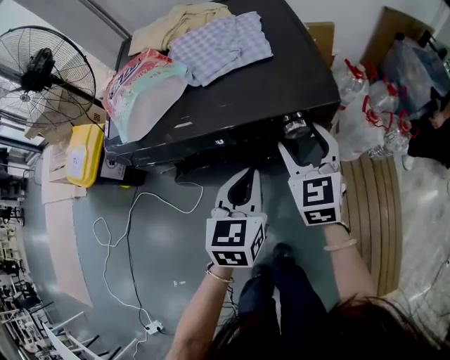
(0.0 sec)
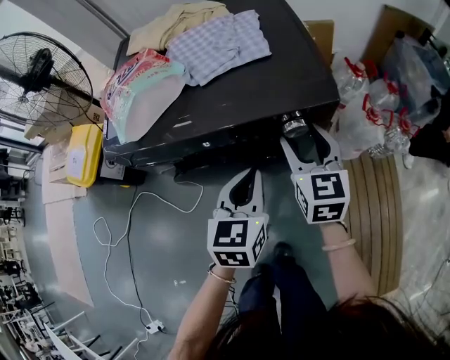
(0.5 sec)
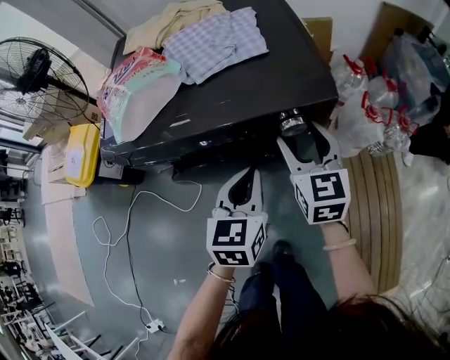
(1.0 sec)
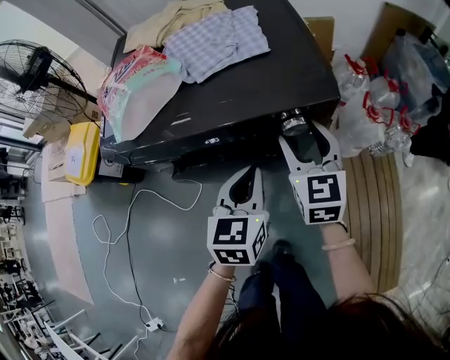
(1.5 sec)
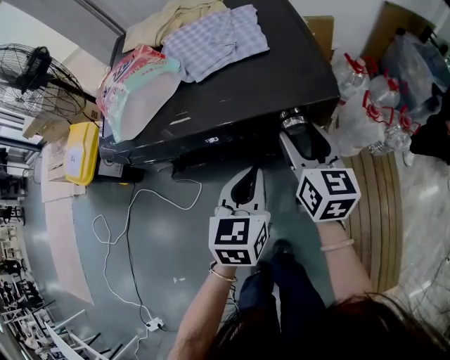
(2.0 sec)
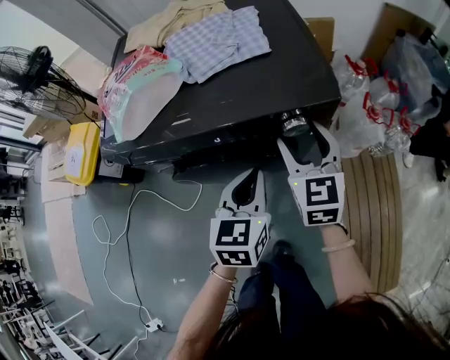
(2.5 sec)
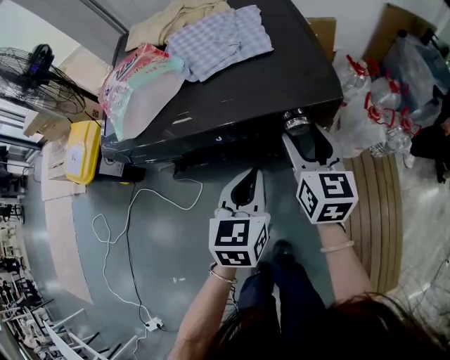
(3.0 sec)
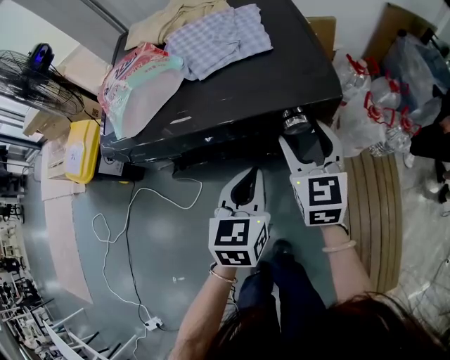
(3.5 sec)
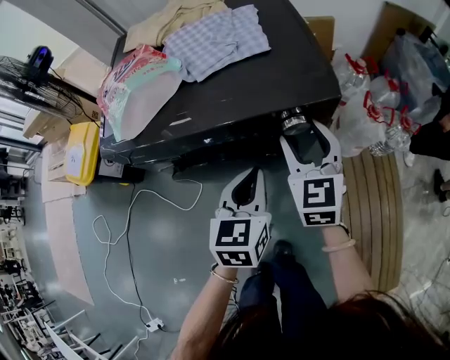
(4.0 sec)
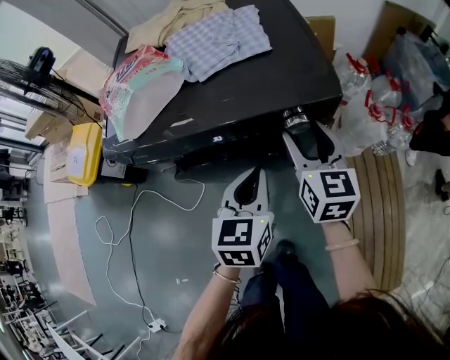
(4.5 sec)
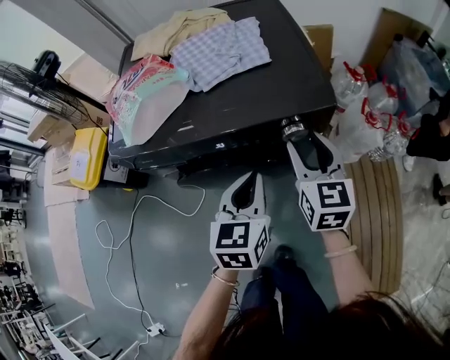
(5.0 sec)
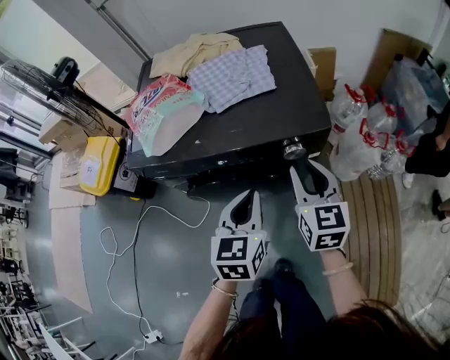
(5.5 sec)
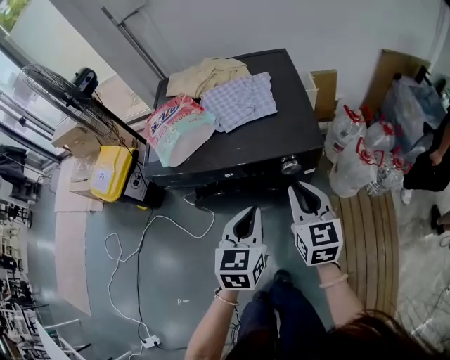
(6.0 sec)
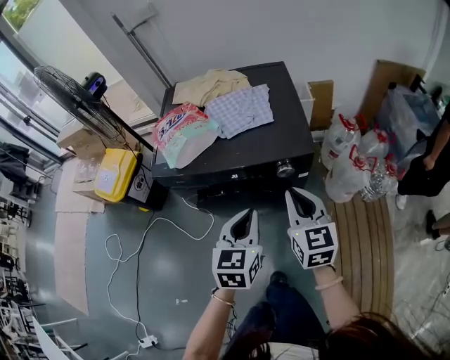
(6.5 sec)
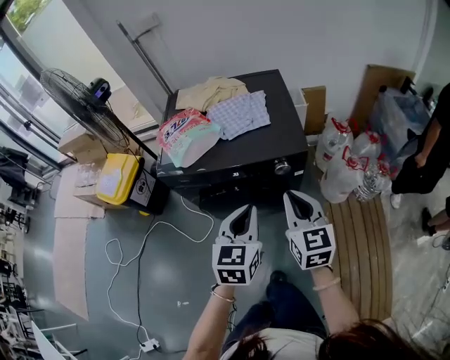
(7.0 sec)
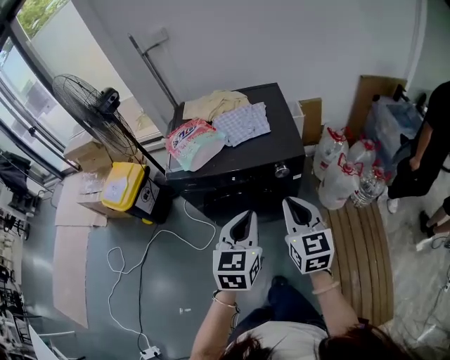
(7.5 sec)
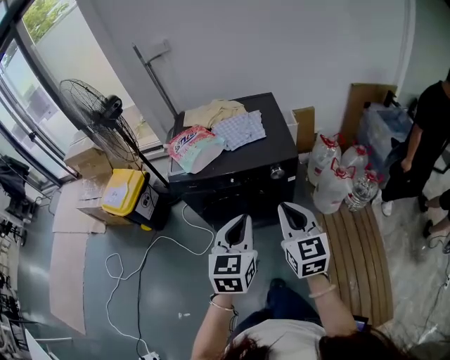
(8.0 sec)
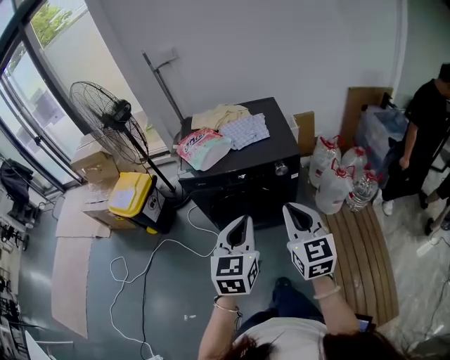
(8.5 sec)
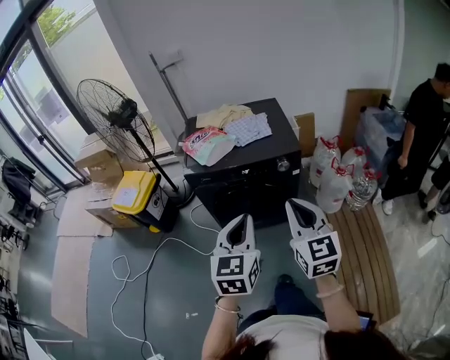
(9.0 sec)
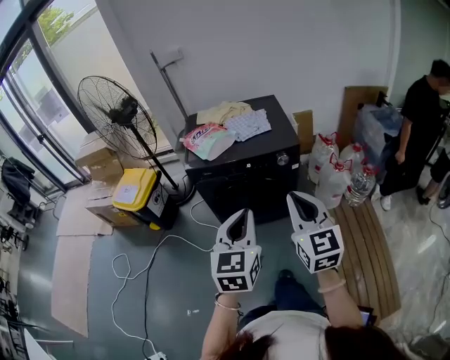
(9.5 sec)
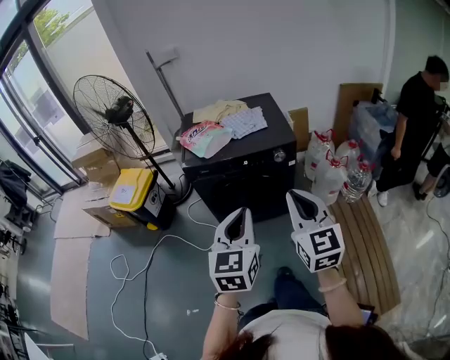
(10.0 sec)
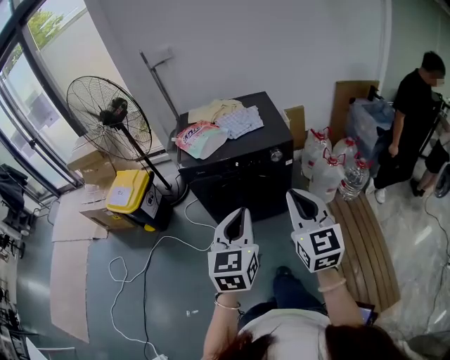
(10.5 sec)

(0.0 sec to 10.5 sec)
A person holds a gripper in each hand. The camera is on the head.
0.0 sec - 2.0 sec: The right gripper rotates about 30 degrees.
2.0 sec - 4.0 sec: The right gripper turns by roughly 30 degrees.
4.0 sec - 6.5 sec: The two grippers go approximately 15 cm upward and backward. The right gripper closes its fingers.
6.5 sec - 8.5 sec: Both grippers move backward and upward, roughly 25 cm.
8.5 sec - 10.5 sec: Both grippers move backward, about 10 cm.

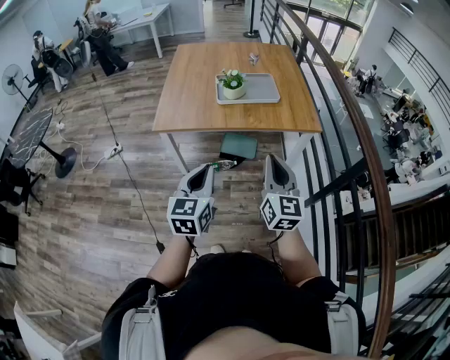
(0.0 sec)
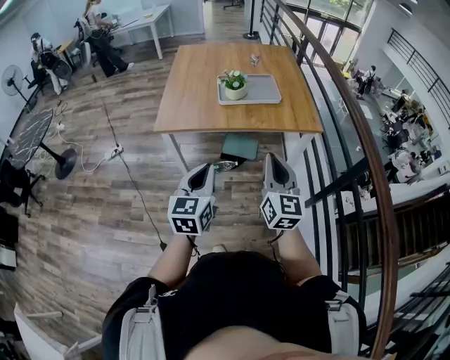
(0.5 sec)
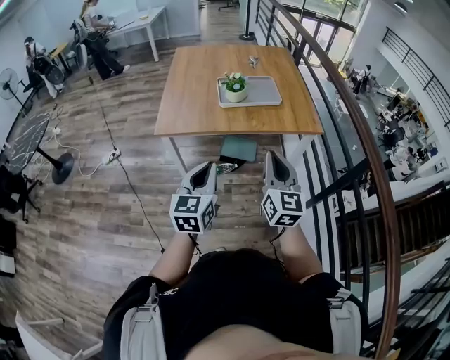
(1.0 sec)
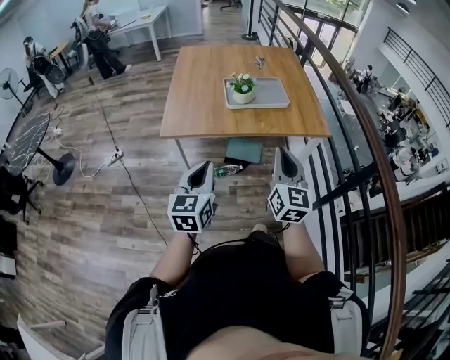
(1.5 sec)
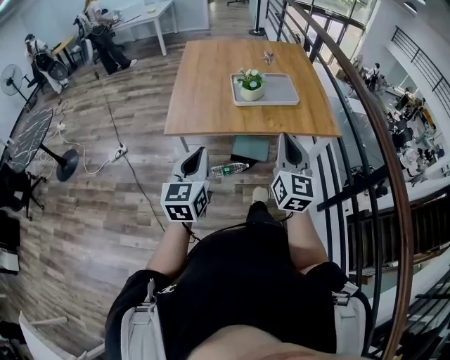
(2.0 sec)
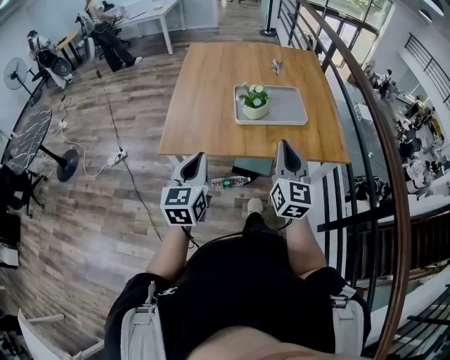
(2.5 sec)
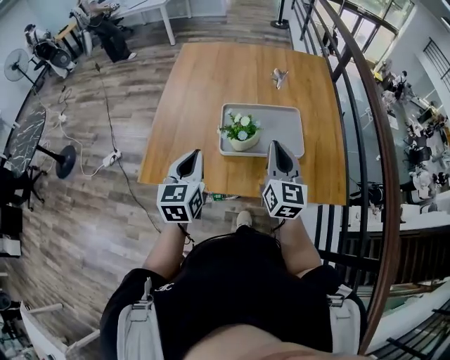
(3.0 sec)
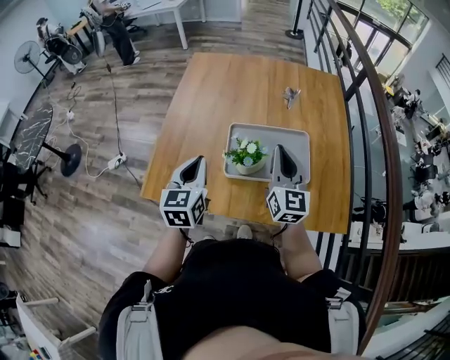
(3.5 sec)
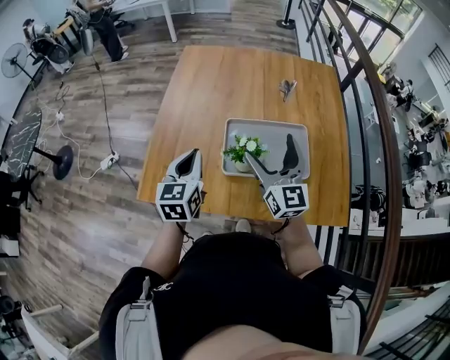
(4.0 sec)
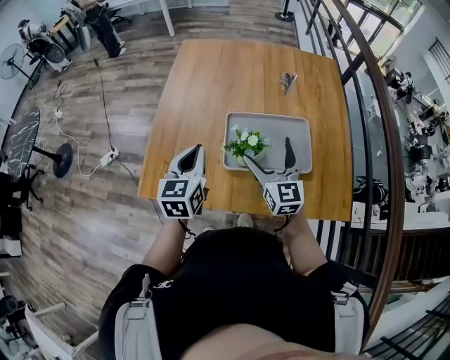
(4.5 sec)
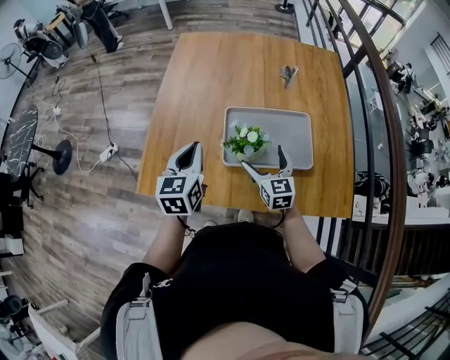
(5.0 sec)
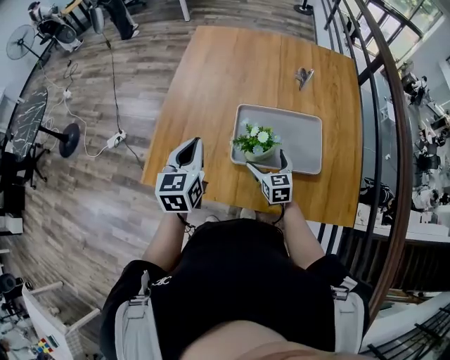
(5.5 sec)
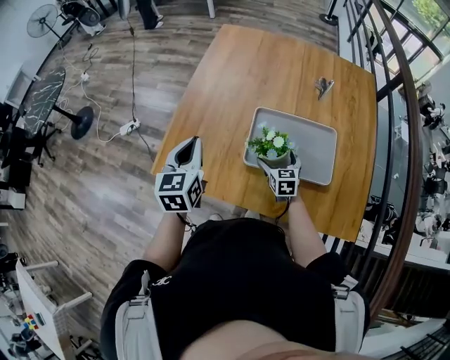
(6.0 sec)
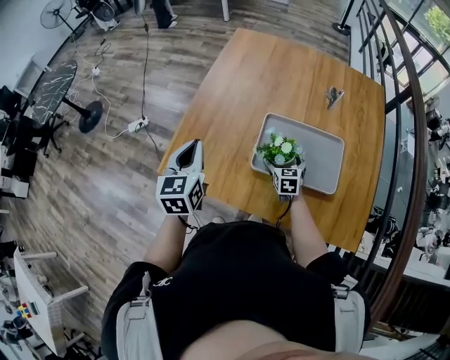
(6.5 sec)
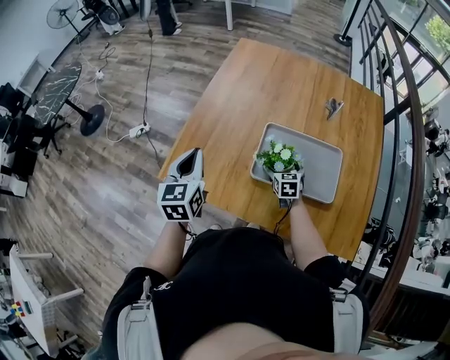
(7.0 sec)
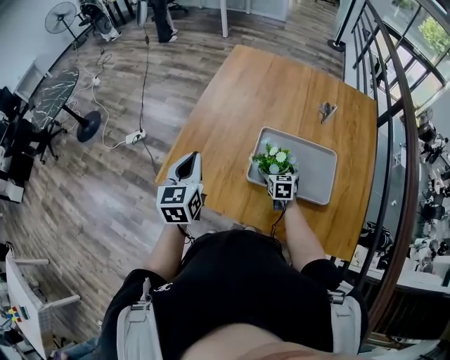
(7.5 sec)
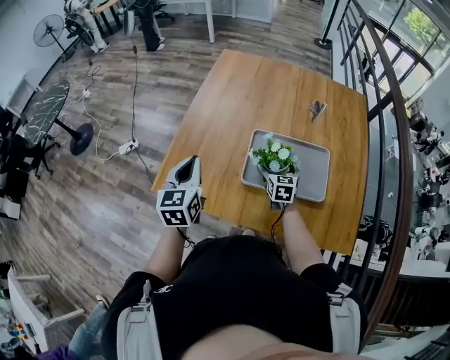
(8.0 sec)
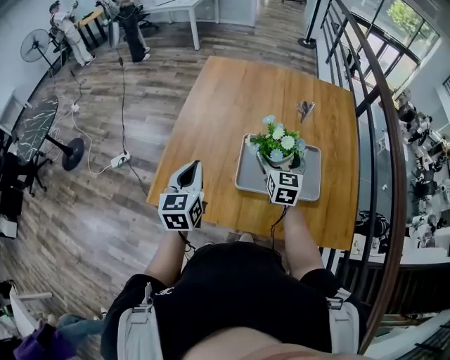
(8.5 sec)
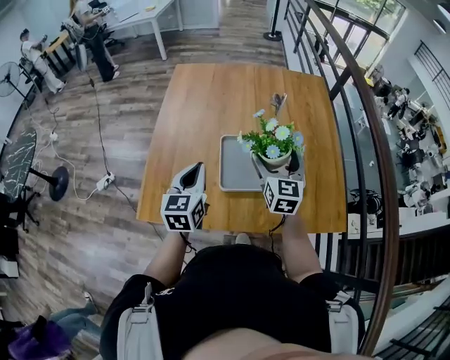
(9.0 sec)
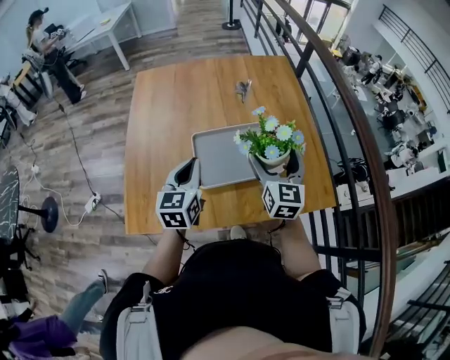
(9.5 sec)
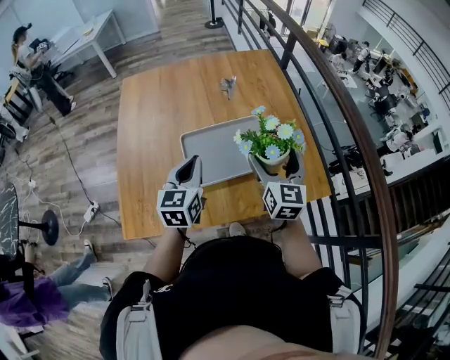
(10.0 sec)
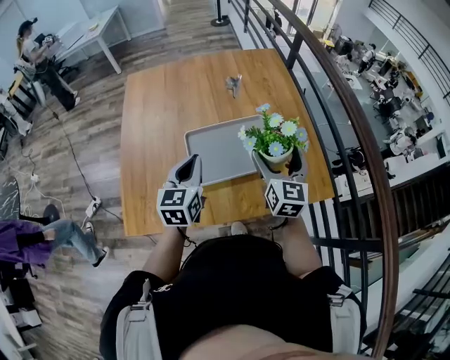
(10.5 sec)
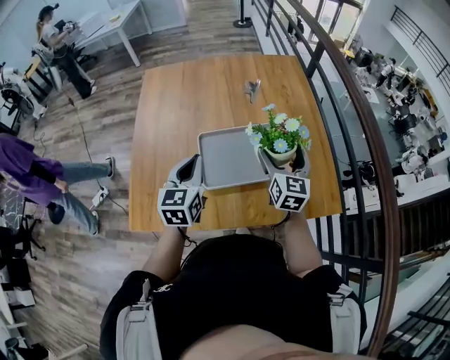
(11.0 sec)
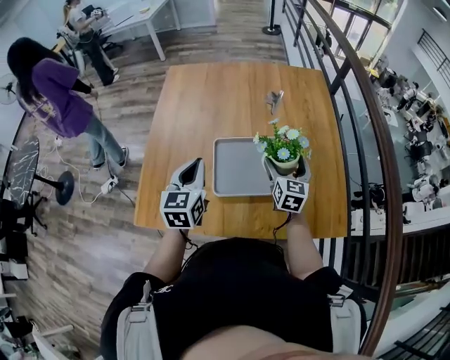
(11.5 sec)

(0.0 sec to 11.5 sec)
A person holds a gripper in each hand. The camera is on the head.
0.0 sec - 2.0 sec: The left gripper moves to the left and forward, approximately 15 cm. Meanwhile the right gripper is displaced forward and to the left by approximately 15 cm.
2.0 sec - 4.0 sec: Both grippers are carried forward, some 50 cm. The right gripper changes its angle by about 20 degrees, and opens up.
4.0 sec - 6.0 sec: The left gripper is displaced to the left by roughly 5 cm. Meanwhile the right gripper is displaced downward by some 30 cm, and tips its fingers downward by roughly 40 degrees.
6.0 sec - 7.5 sec: The grippers stay close to where they were, moving slightly.
7.5 sec - 9.5 sec: The left gripper moves about 20 cm, and changes its angle by roughly 30 degrees. The right gripper is displaced upward by roughly 25 cm, and tips its fingers upward by some 30 degrees.
9.5 sec - 11.5 sec: The right gripper goes some 15 cm downward and forward. The left gripper moves roughly 5 cm to the right and comes back.

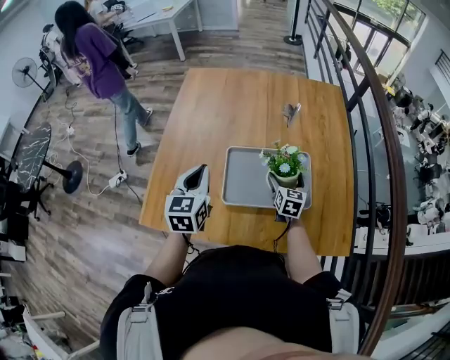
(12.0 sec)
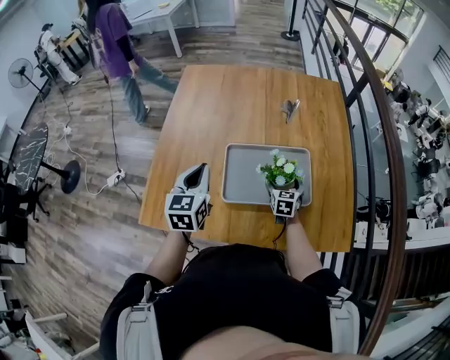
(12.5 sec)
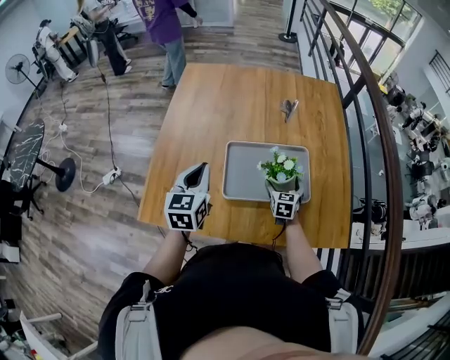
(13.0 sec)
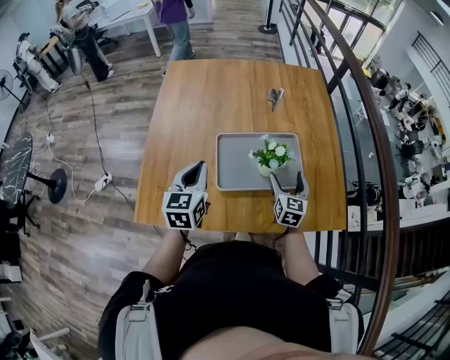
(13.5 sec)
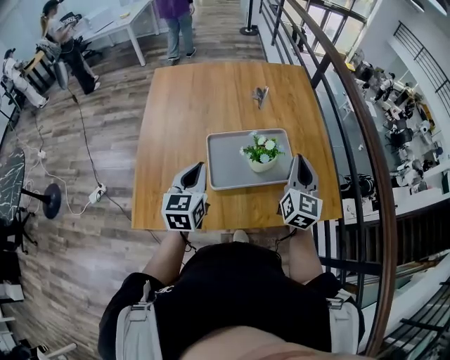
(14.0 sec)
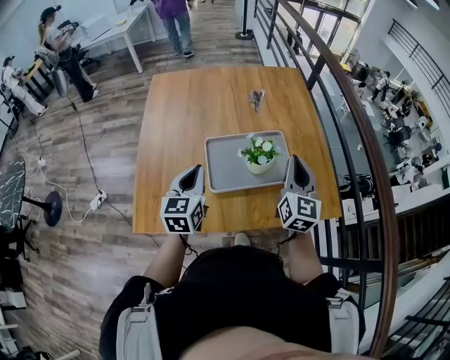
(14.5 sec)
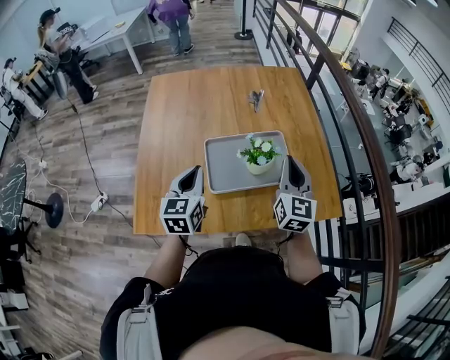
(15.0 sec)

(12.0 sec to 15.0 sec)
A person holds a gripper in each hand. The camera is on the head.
12.0 sec - 13.5 sec: The right gripper is displaced backward by approximately 10 cm.
13.5 sec - 15.0 sec: The right gripper goes roughly 20 cm upward, and closes.

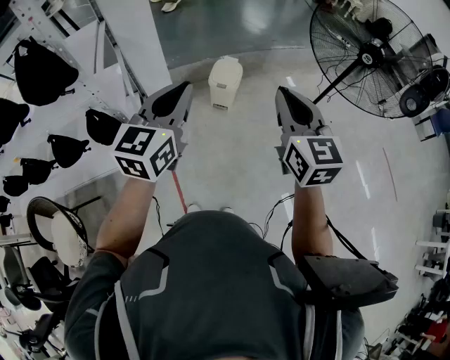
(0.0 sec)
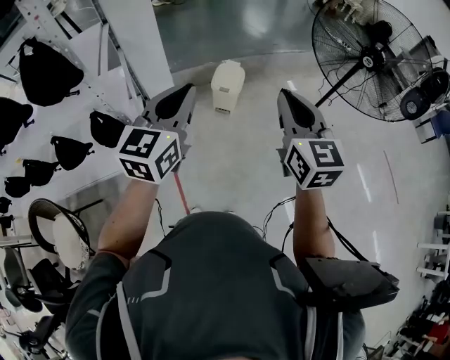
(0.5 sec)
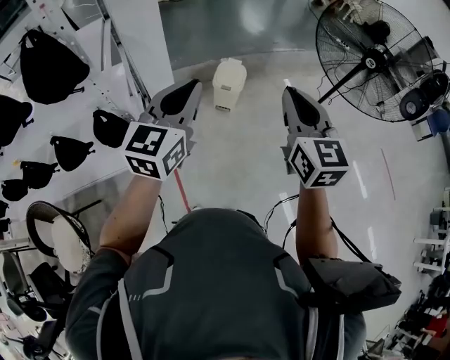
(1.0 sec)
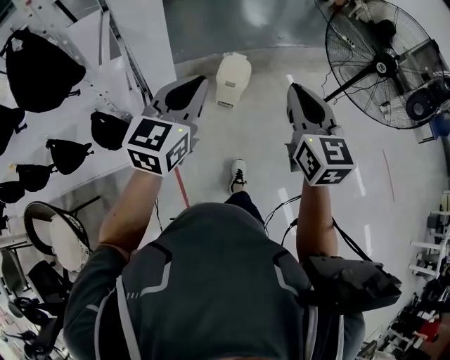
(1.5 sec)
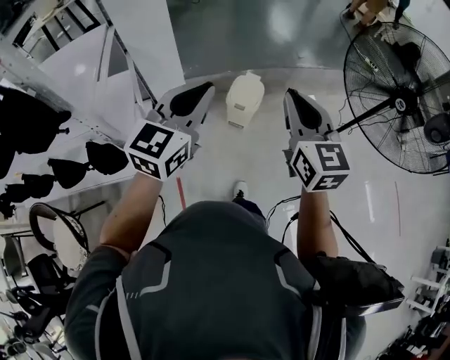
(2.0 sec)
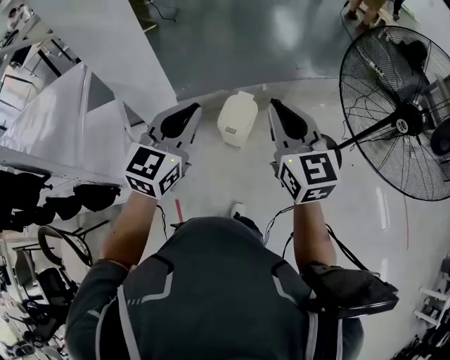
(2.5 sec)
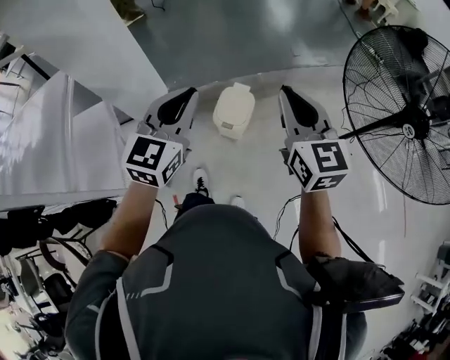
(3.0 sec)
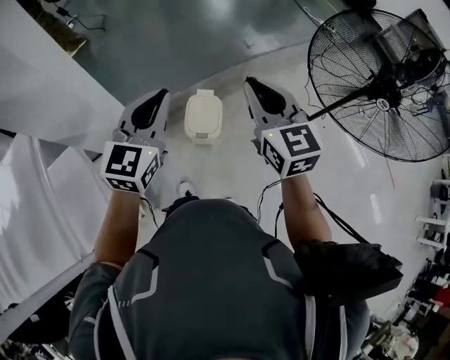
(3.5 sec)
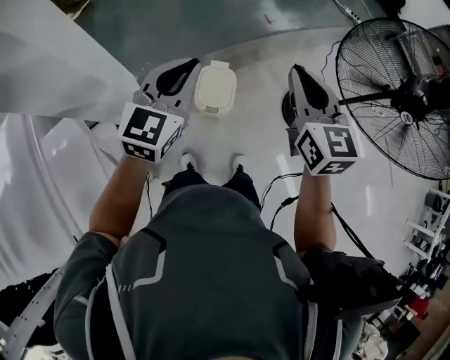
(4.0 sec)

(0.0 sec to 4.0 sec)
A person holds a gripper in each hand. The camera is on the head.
0.0 sec - 2.0 sec: Both grippers travel together forward, about 20 cm.
2.0 sec - 4.0 sec: The two grippers go approximately 35 cm forward.
